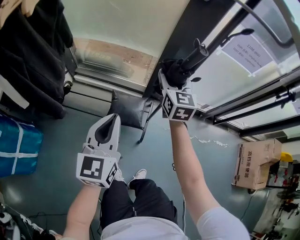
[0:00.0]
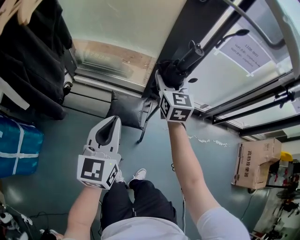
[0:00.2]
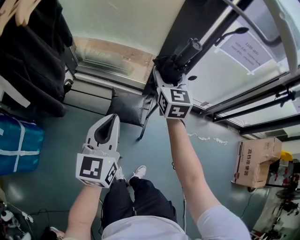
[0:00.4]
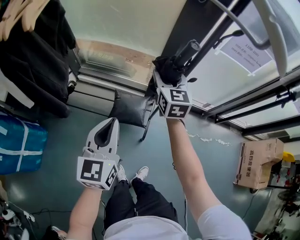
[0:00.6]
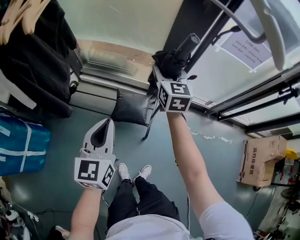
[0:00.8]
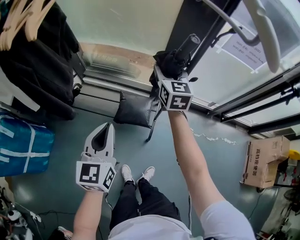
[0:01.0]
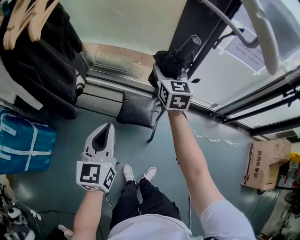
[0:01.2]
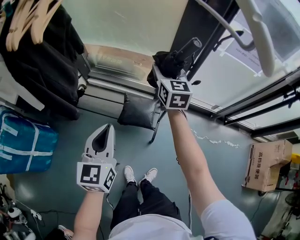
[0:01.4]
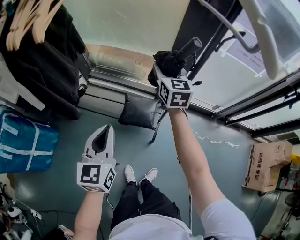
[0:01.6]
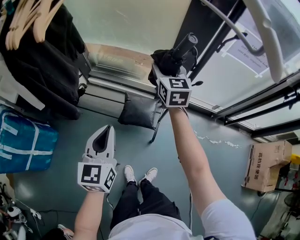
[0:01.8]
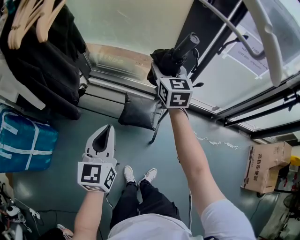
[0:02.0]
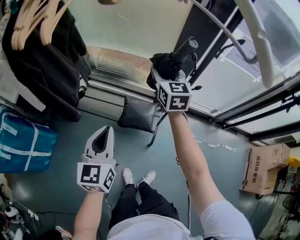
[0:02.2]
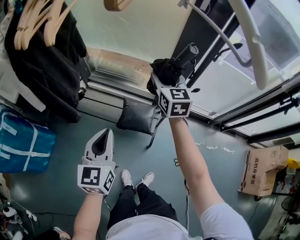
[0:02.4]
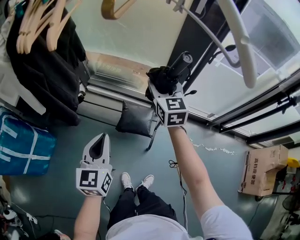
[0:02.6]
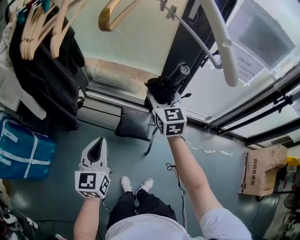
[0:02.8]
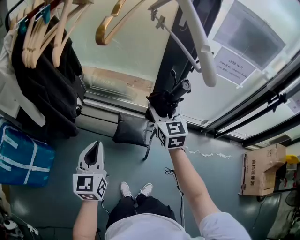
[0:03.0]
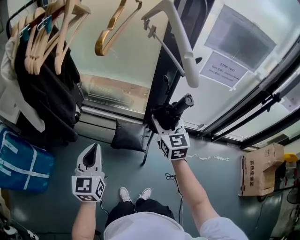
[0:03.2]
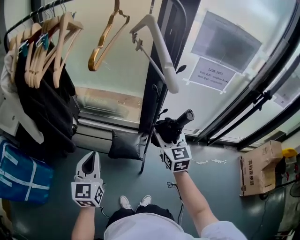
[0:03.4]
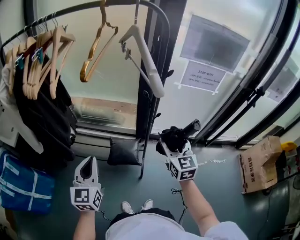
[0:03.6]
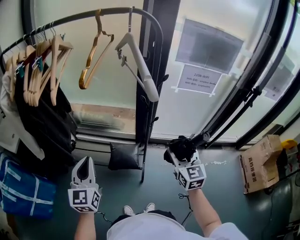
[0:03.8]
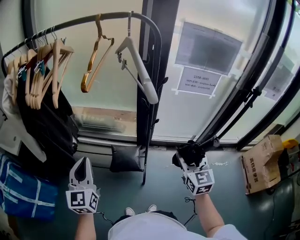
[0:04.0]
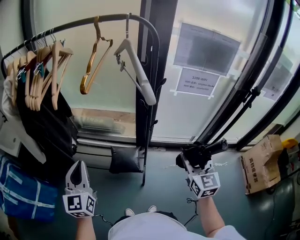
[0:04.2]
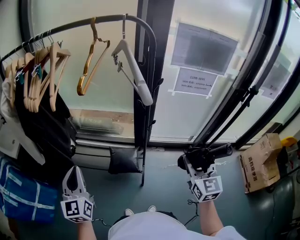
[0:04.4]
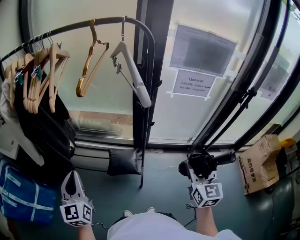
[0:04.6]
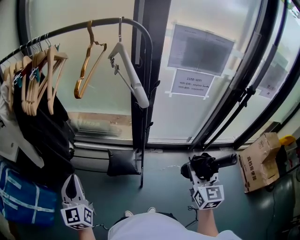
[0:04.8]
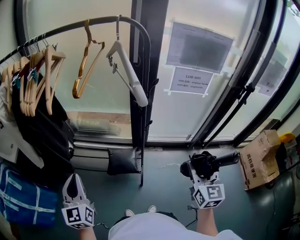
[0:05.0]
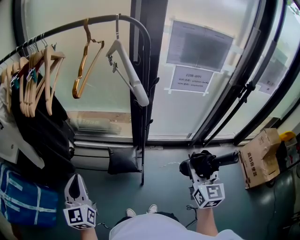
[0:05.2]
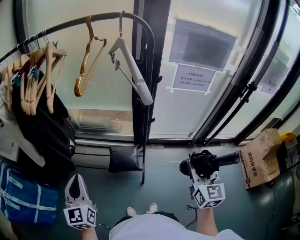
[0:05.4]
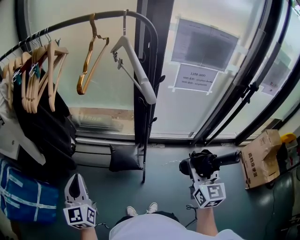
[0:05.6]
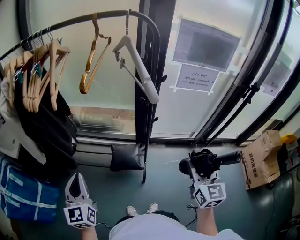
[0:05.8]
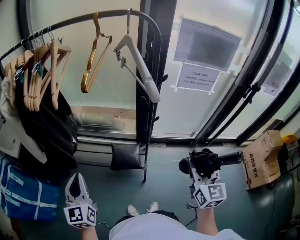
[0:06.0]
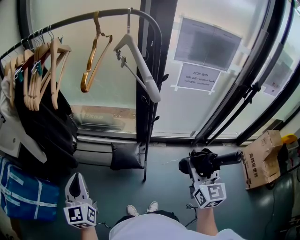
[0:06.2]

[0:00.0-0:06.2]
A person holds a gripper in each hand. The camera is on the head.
0:00.0 to 0:01.6: The left gripper changes place by roughly 5 cm; the right gripper shifts by roughly 5 cm.
0:01.6 to 0:03.2: The left gripper ends up about 5 cm from where it was; the right gripper moves backward, approximately 15 cm.
0:03.2 to 0:04.6: The right gripper is displaced backward and to the right by approximately 25 cm, and changes its angle by about 20 degrees, while the left gripper heads upward, covering approximately 10 cm.
0:04.6 to 0:06.2: The grippers move only a little.

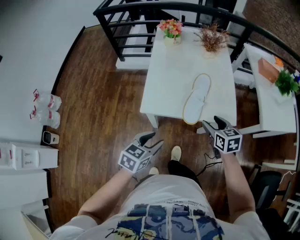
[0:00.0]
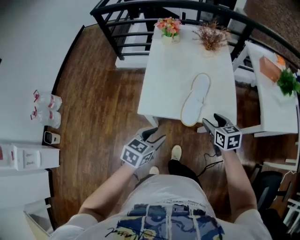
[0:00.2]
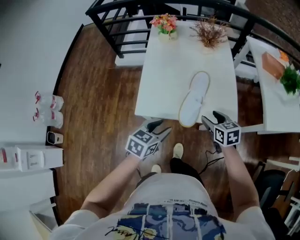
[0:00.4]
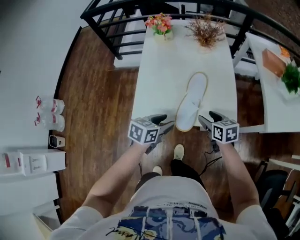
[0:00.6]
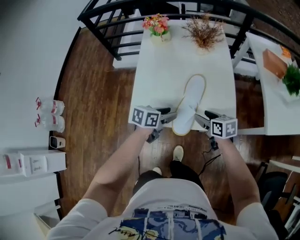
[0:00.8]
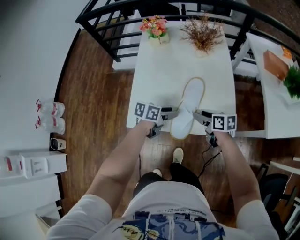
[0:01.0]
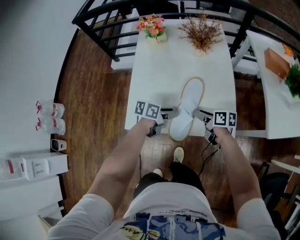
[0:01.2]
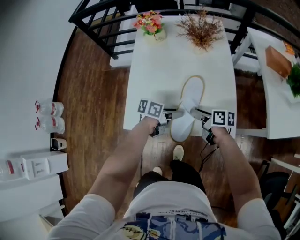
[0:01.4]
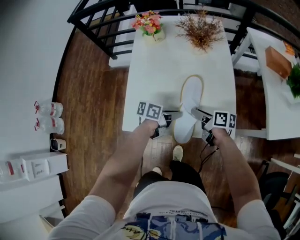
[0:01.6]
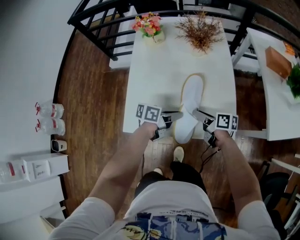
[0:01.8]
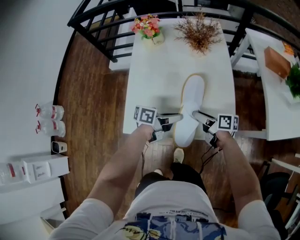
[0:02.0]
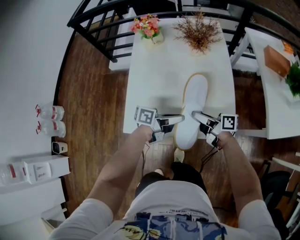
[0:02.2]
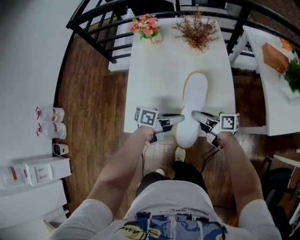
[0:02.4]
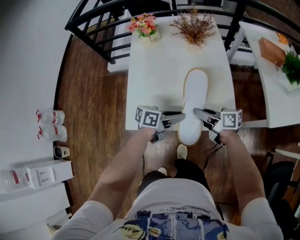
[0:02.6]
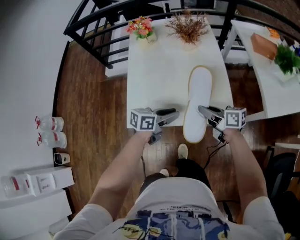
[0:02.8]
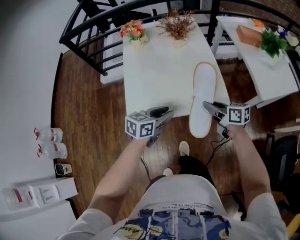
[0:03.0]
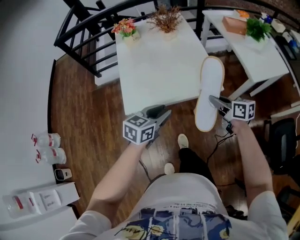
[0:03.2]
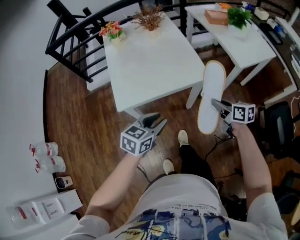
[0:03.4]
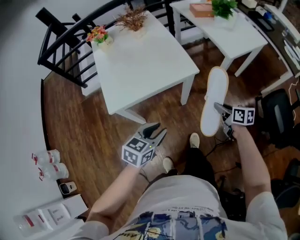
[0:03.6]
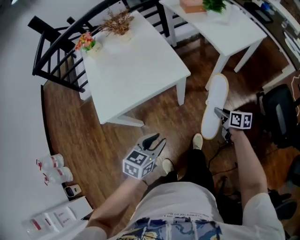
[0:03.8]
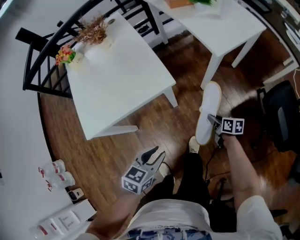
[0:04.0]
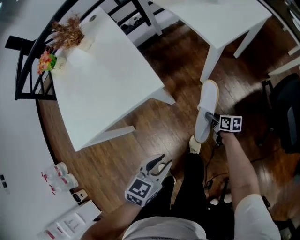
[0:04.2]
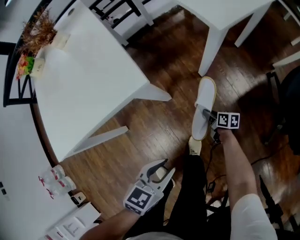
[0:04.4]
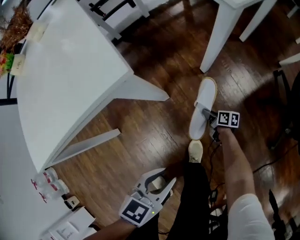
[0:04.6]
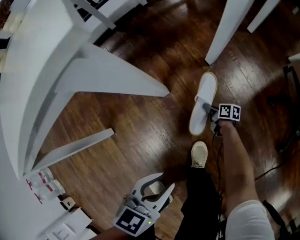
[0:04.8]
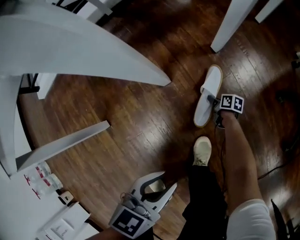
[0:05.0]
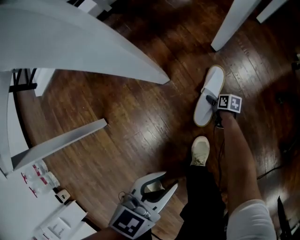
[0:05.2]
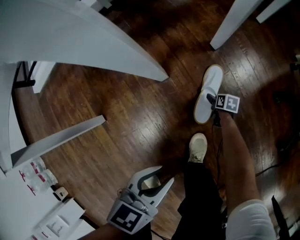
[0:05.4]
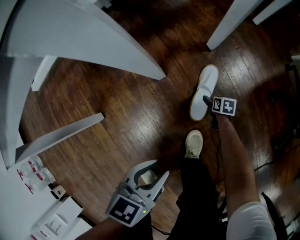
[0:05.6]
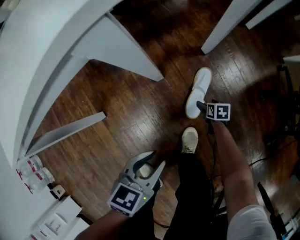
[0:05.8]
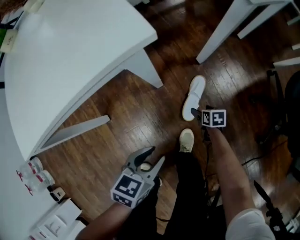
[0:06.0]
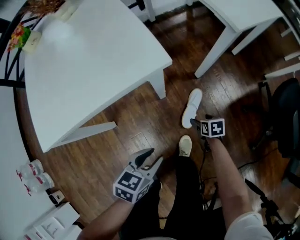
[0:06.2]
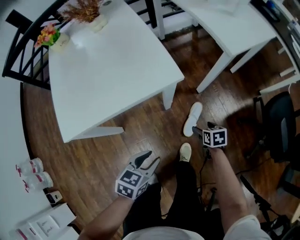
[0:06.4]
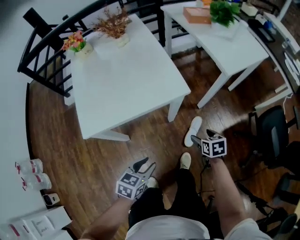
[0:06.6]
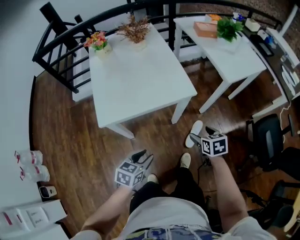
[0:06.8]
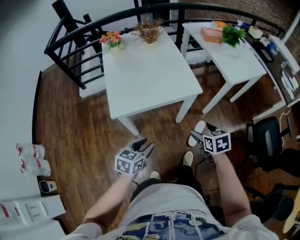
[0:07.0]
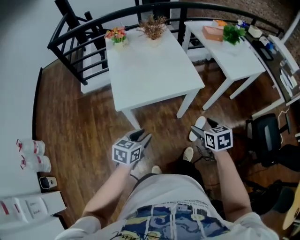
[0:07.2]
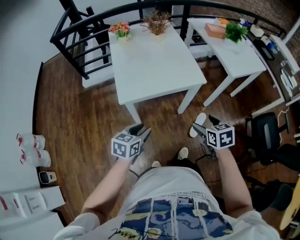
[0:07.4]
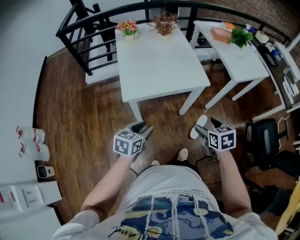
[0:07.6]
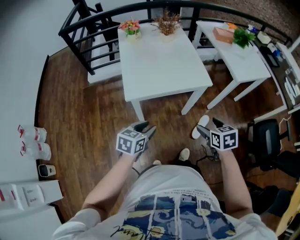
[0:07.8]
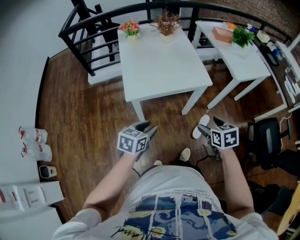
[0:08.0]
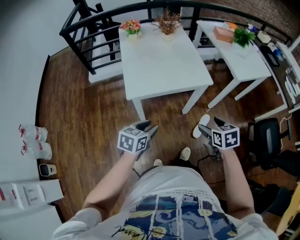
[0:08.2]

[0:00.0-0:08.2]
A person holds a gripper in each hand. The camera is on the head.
0:00.0 to 0:01.6: The left gripper shifts by about 35 cm, rotates some 50 degrees, and closes up, while the right gripper shifts by some 25 cm, and rotates around the line of its fingers by some 40 degrees, clockwise from behind.
0:01.6 to 0:03.2: The right gripper ends up about 25 cm from where it was, and swivels roughly 30 degrees. The left gripper moves some 25 cm, and rolls clockwise, seen from behind, by some 40 degrees.
0:03.2 to 0:05.0: The left gripper shifts approximately 60 cm downward and to the right, and changes its angle by about 20 degrees; the right gripper shifts roughly 90 cm downward, and twists about 40 degrees clockwise, seen from behind.
0:05.0 to 0:06.6: The left gripper moves upward and to the left, some 40 cm, while the right gripper is displaced upward by approximately 70 cm, rotates around the line of its fingers by about 40 degrees, counterclockwise from behind, and opens its fingers.
0:06.6 to 0:08.2: The left gripper is displaced to the left, upward and backward by roughly 25 cm; the right gripper heads upward, to the left and backward, covering about 35 cm.

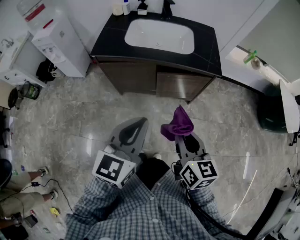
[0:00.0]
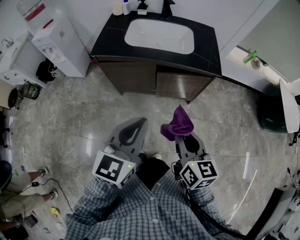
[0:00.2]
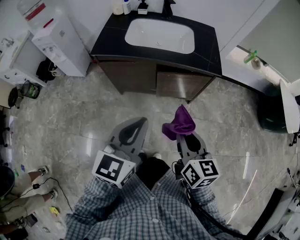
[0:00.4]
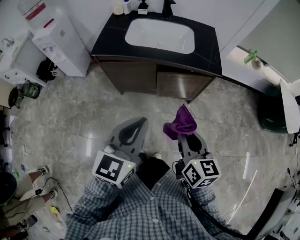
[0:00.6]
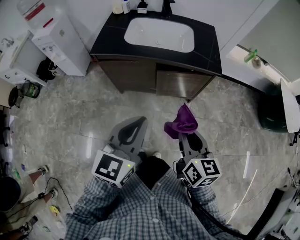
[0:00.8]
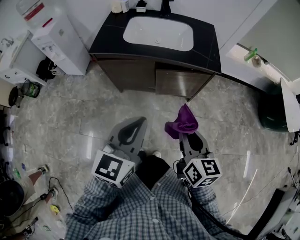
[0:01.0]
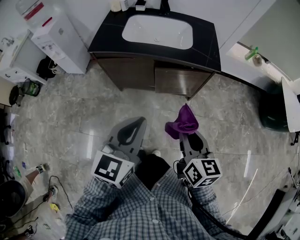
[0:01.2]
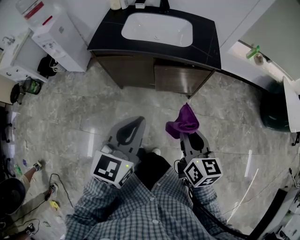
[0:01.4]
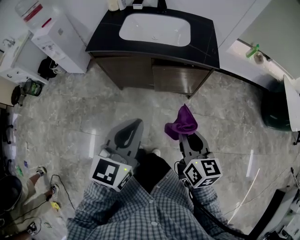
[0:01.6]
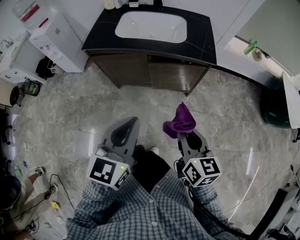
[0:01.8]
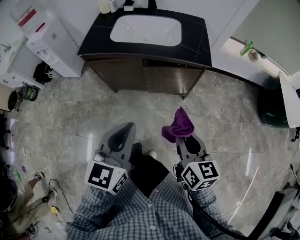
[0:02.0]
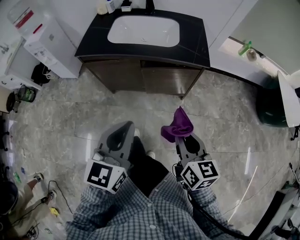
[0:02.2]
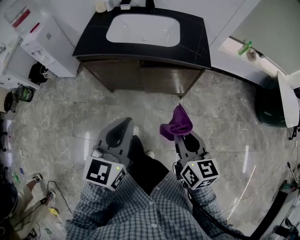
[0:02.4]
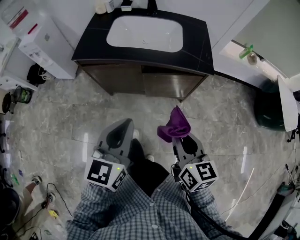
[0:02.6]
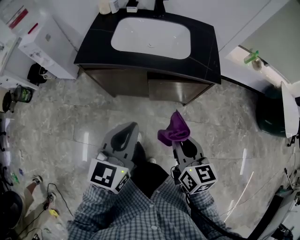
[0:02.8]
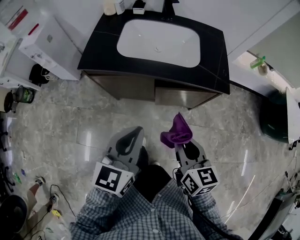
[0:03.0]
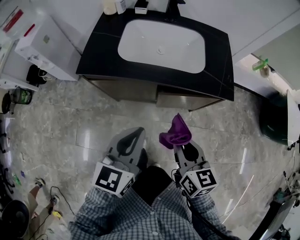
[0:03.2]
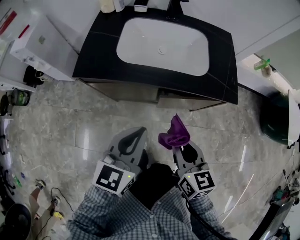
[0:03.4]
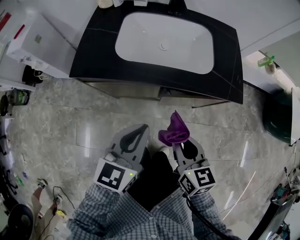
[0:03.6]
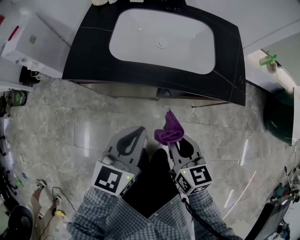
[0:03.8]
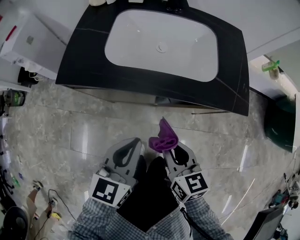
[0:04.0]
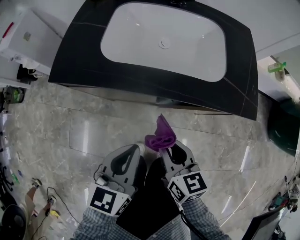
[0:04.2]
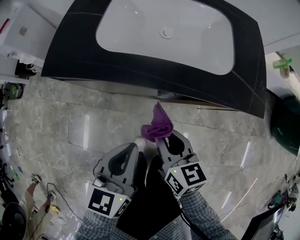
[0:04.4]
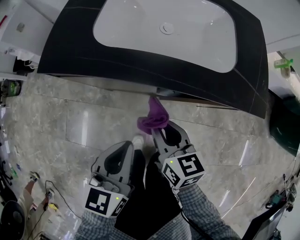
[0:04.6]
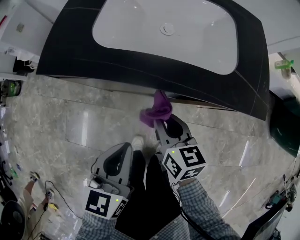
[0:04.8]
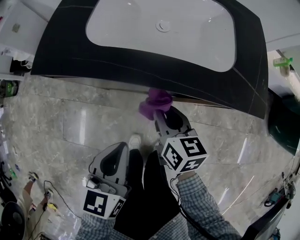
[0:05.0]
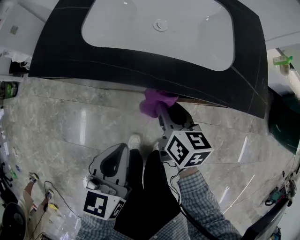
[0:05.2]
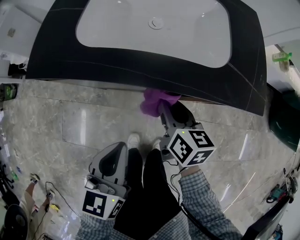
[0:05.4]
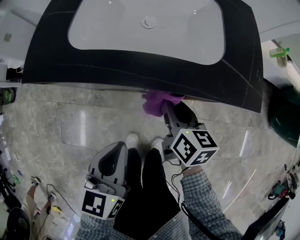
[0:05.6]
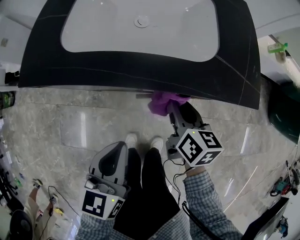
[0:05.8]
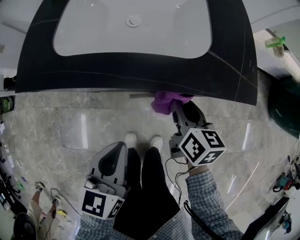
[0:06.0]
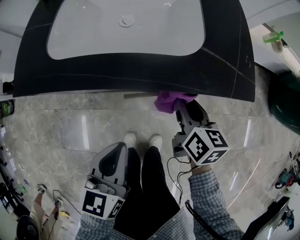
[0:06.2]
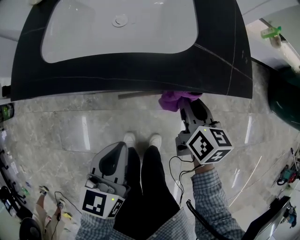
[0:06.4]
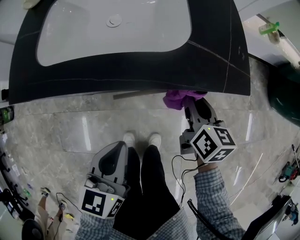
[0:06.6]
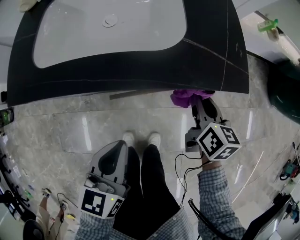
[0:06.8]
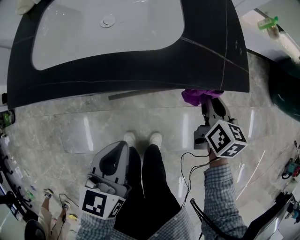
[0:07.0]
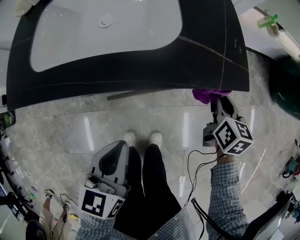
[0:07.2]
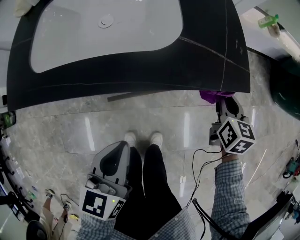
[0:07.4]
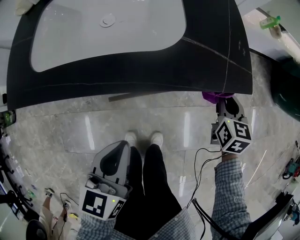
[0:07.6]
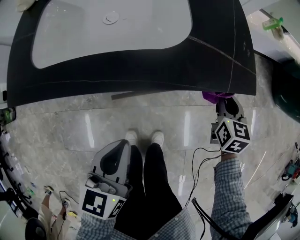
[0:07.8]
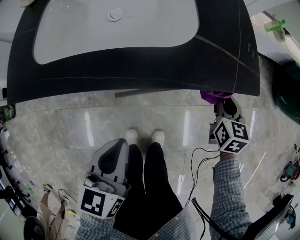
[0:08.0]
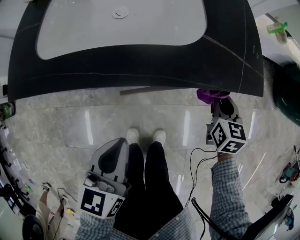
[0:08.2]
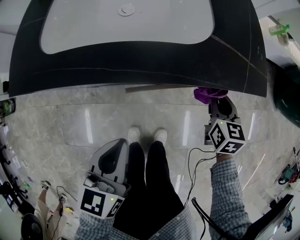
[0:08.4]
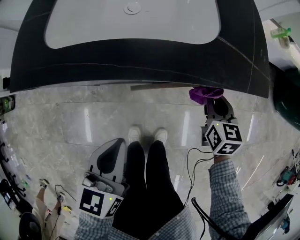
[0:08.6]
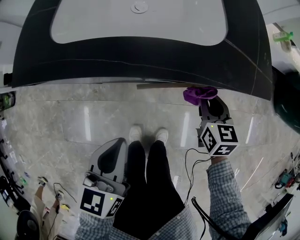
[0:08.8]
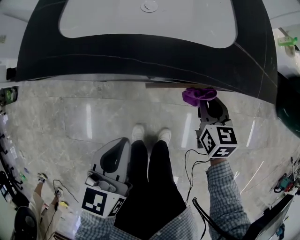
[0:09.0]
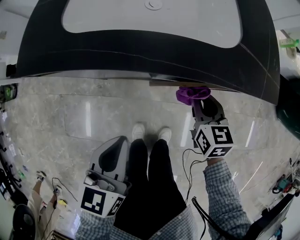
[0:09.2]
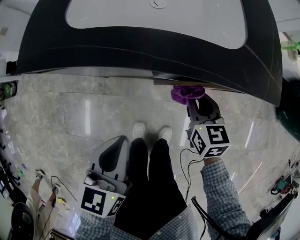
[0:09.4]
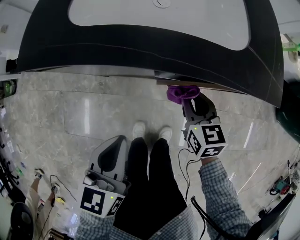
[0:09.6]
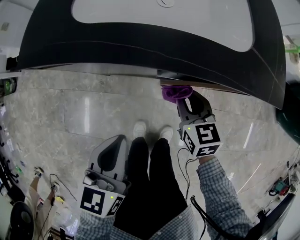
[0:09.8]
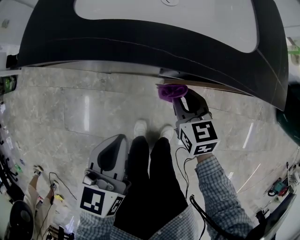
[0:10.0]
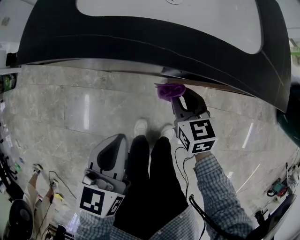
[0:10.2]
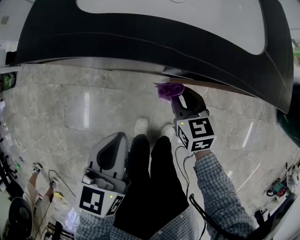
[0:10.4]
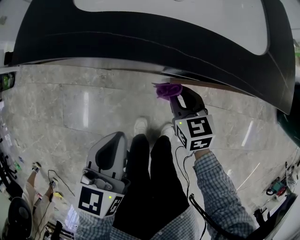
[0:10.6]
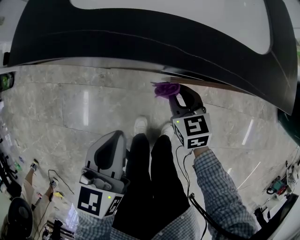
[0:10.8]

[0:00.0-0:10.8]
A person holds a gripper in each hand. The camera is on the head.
0:00.0 to 0:01.6: The right gripper shifts approximately 5 cm to the right.
0:01.6 to 0:03.0: The right gripper moves forward and to the left, about 15 cm, while the left gripper moves forward, approximately 15 cm.
0:03.0 to 0:04.6: The left gripper shifts some 25 cm downward and forward. Meanwhile the right gripper shifts roughly 30 cm downward, forward and to the left.
0:04.6 to 0:06.2: The right gripper moves to the right, about 20 cm, and changes its angle by roughly 20 degrees. The left gripper shifts some 10 cm to the right.
0:06.2 to 0:07.8: The right gripper goes about 20 cm to the right, and turns by about 30 degrees.
0:07.8 to 0:09.2: The left gripper travels to the left by some 10 cm. The right gripper is displaced to the left by some 20 cm, and rotates about 20 degrees.
0:09.2 to 0:10.8: The right gripper travels to the left and downward by roughly 15 cm.
